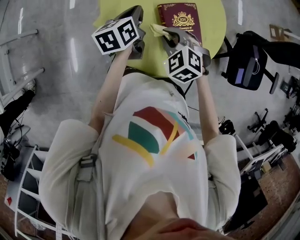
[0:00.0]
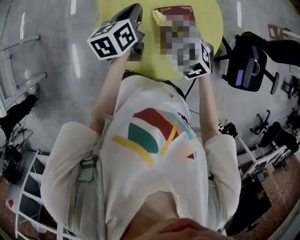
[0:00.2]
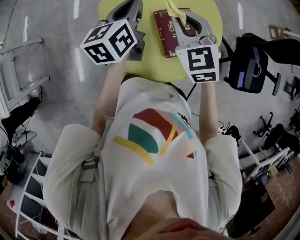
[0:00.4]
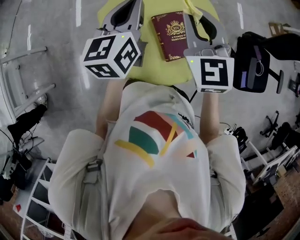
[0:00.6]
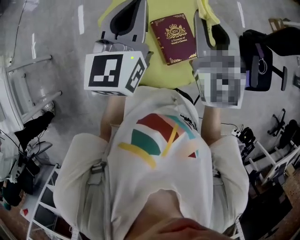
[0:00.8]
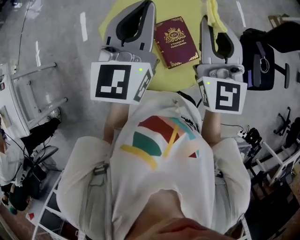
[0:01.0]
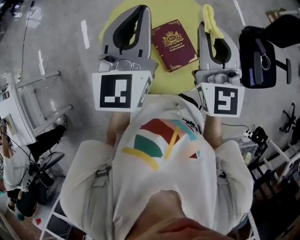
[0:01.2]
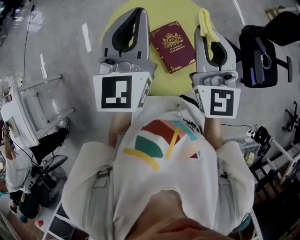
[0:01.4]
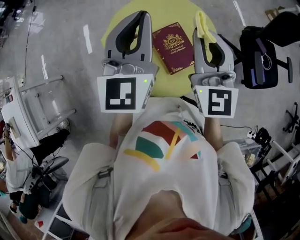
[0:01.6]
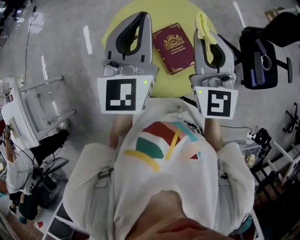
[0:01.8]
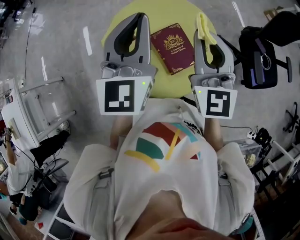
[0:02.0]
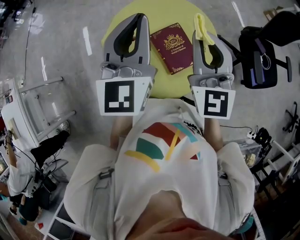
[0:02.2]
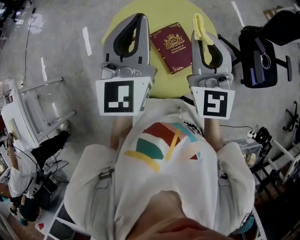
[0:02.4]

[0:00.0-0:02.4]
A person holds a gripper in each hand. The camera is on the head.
0:00.0 to 0:01.2: The right gripper heads upward and to the right, covering about 30 cm, and points its fingers approximately 60 degrees further upward, while the left gripper moves upward, roughly 30 cm, and twists roughly 40 degrees clockwise, seen from behind.
0:01.2 to 0:02.4: The grippers move only a little.

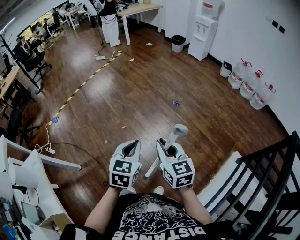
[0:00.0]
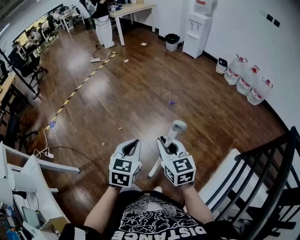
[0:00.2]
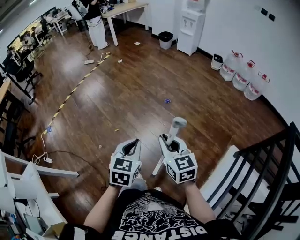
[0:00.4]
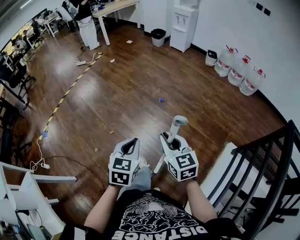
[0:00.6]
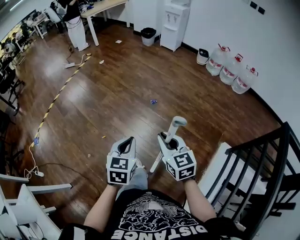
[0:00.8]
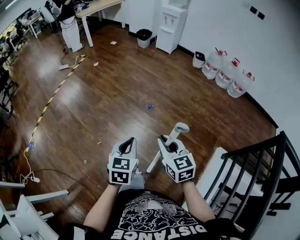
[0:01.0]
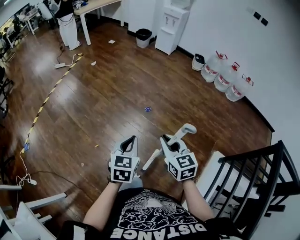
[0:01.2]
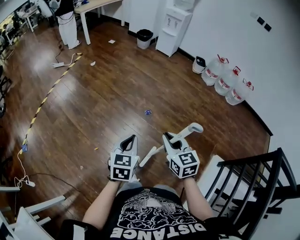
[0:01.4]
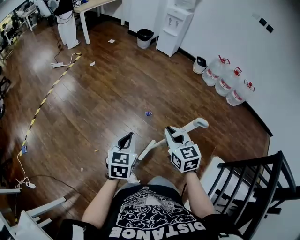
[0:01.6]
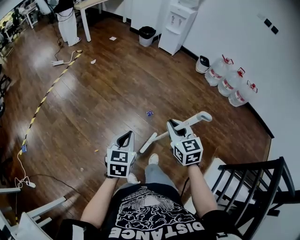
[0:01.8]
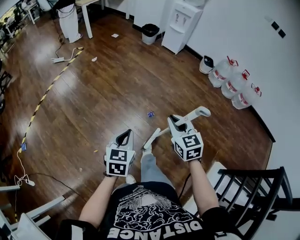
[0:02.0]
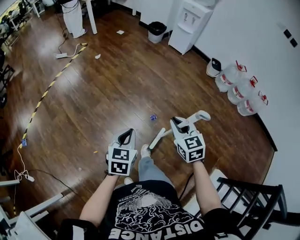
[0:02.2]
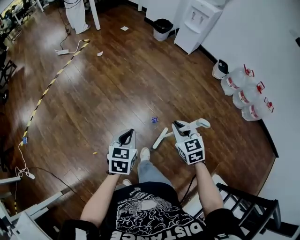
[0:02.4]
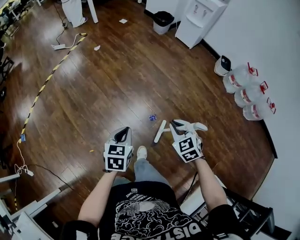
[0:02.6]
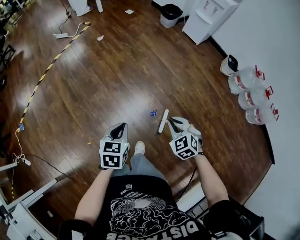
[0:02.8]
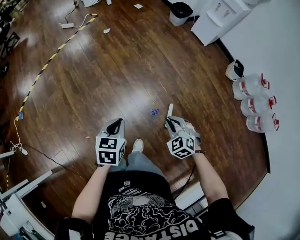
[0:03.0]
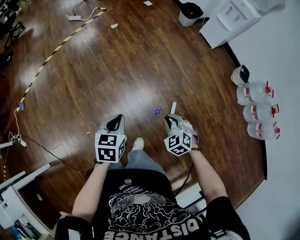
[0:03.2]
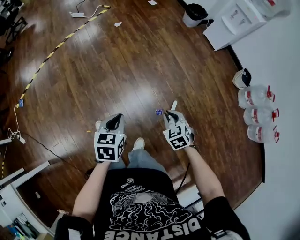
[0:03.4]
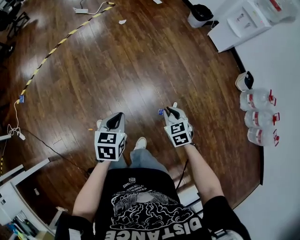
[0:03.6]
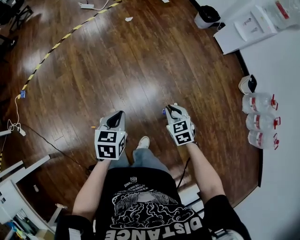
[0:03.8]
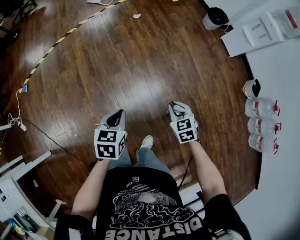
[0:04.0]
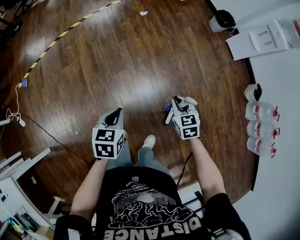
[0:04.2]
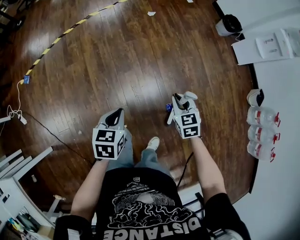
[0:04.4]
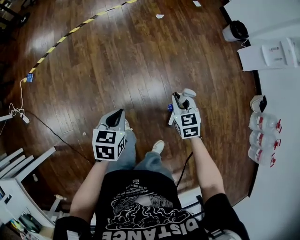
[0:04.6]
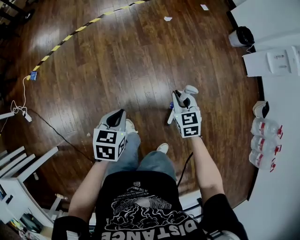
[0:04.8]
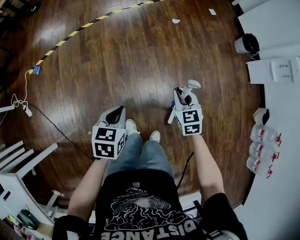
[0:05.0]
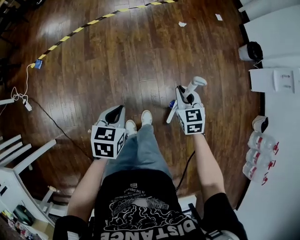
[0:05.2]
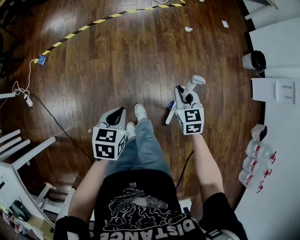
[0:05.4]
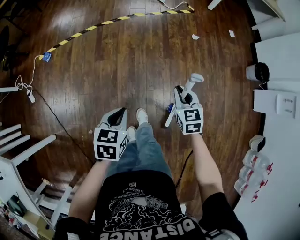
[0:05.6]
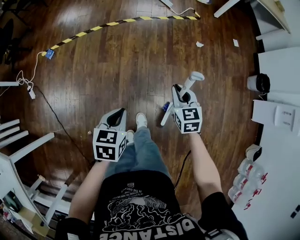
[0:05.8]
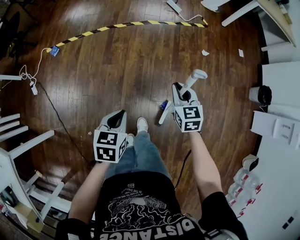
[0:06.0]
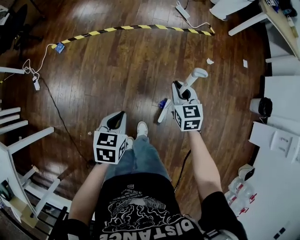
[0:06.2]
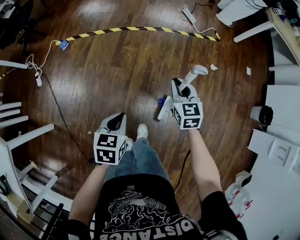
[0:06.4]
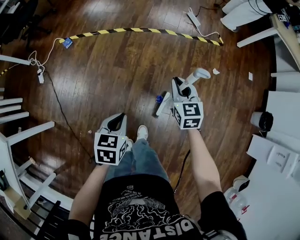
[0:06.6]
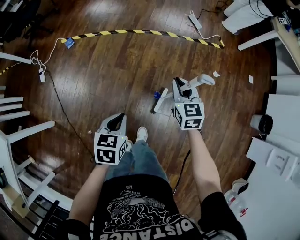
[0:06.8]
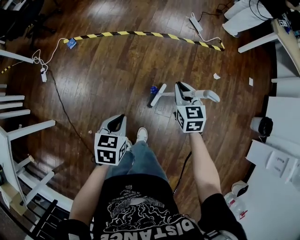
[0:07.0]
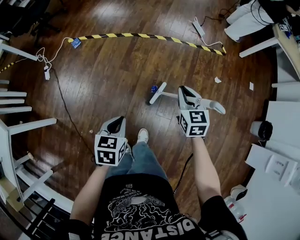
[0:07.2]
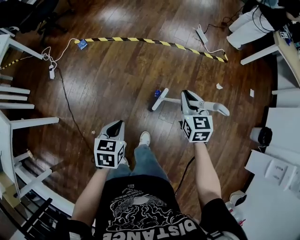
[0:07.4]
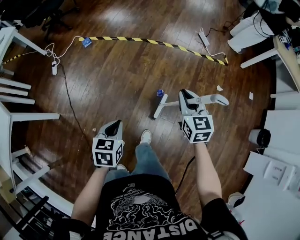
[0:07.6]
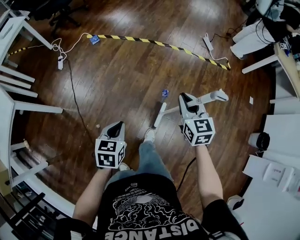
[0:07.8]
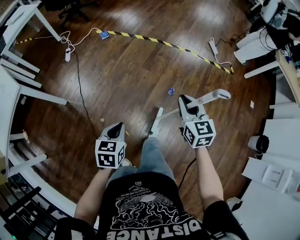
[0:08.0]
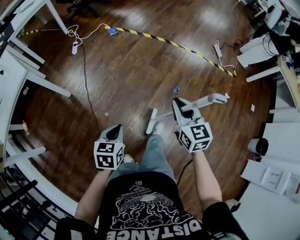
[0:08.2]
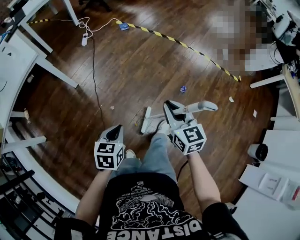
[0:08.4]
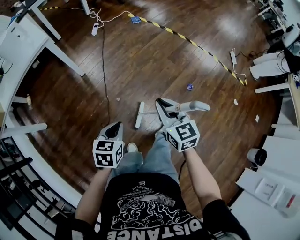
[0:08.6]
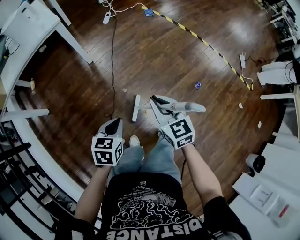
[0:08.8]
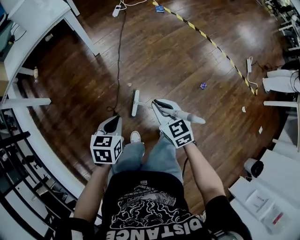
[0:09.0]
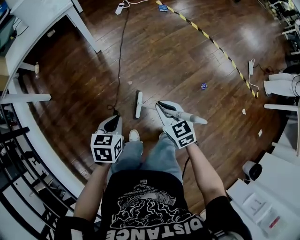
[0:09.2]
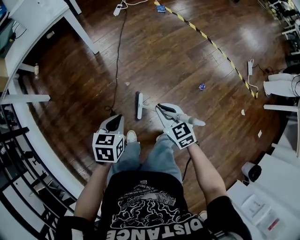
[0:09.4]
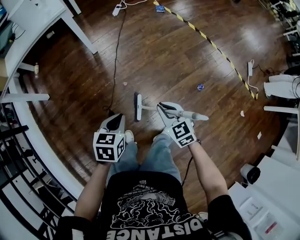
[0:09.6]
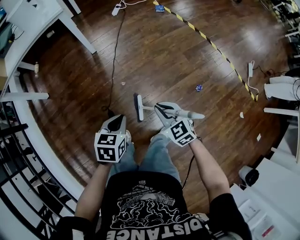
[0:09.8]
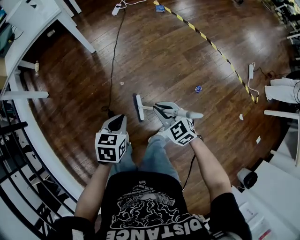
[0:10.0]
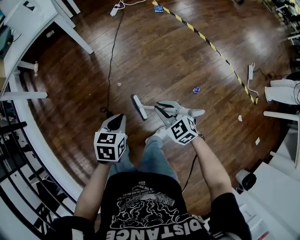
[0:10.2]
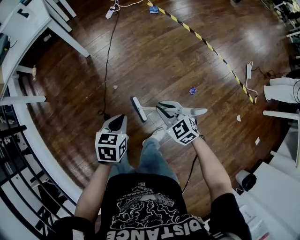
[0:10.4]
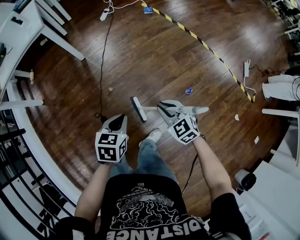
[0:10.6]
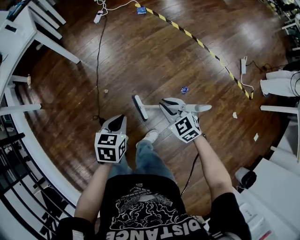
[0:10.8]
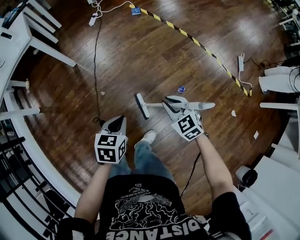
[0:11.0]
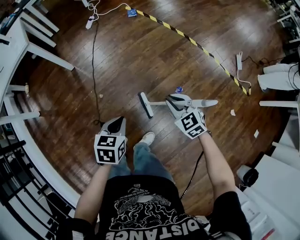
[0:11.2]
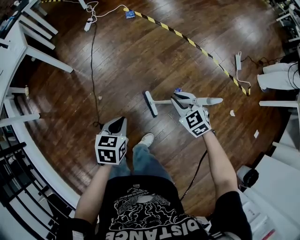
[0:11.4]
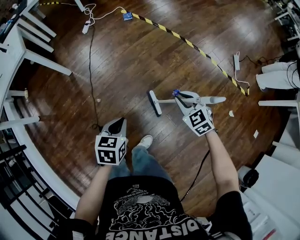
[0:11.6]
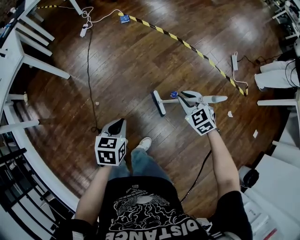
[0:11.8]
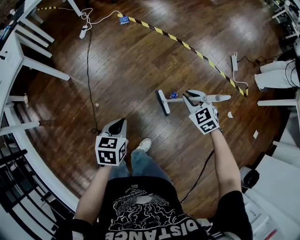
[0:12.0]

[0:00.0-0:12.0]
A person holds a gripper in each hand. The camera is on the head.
0:00.0 to 0:01.6: The two grippers go about 35 cm forward.
0:01.6 to 0:03.0: Both grippers move forward and downward, approximately 40 cm. The right gripper twists some 40 degrees counterclockwise, seen from behind. Meanwhile the left gripper changes its angle by roughly 30 degrees.
0:03.0 to 0:04.4: The left gripper is displaced to the left by some 25 cm. The right gripper travels to the left and forward by approximately 35 cm, and turns by approximately 20 degrees.
0:04.4 to 0:06.0: The left gripper goes approximately 30 cm to the left and forward, and changes its angle by roughly 20 degrees. The right gripper travels forward and to the left by roughly 40 cm, and changes its angle by about 20 degrees.
0:06.0 to 0:07.6: The left gripper moves to the left and backward, some 15 cm, and changes its angle by some 20 degrees, while the right gripper heads to the left and upward, covering some 15 cm.
0:07.6 to 0:09.0: Both grippers are carried some 50 cm. The left gripper changes its angle by roughly 30 degrees; the right gripper turns by some 50 degrees.
0:09.0 to 0:10.4: The grippers both shift to the right by about 20 cm. The right gripper turns by roughly 20 degrees.
0:10.4 to 0:12.0: The right gripper goes approximately 35 cm to the right, and rotates some 20 degrees; the left gripper shifts some 20 cm to the right.

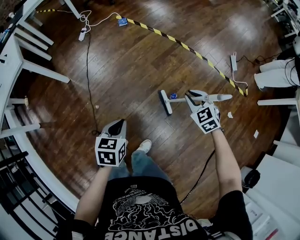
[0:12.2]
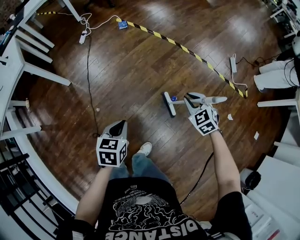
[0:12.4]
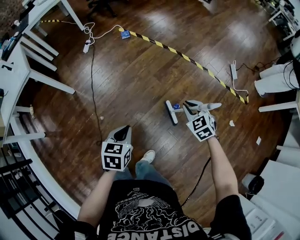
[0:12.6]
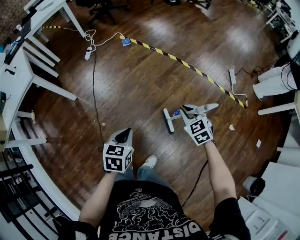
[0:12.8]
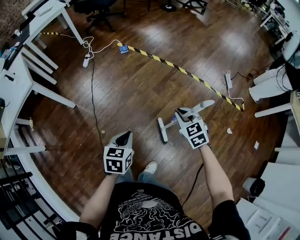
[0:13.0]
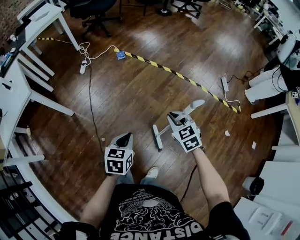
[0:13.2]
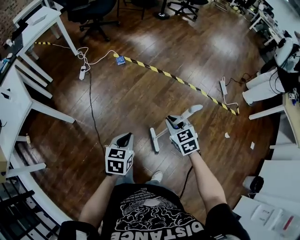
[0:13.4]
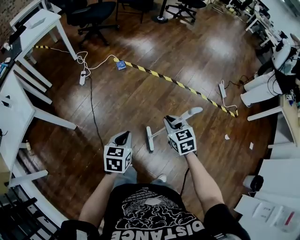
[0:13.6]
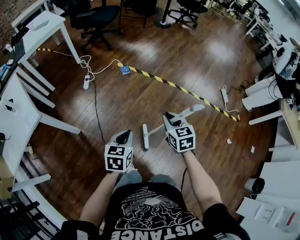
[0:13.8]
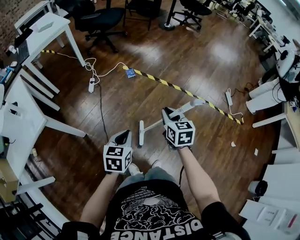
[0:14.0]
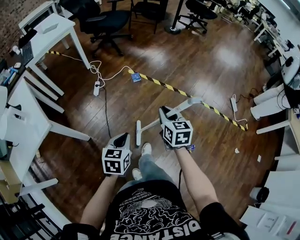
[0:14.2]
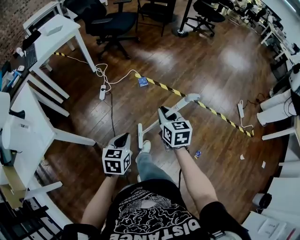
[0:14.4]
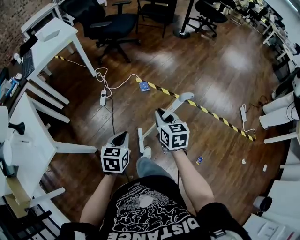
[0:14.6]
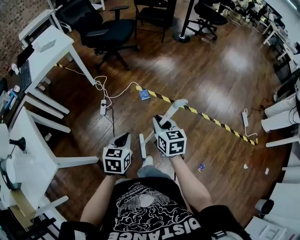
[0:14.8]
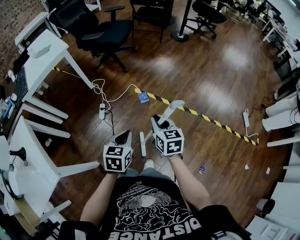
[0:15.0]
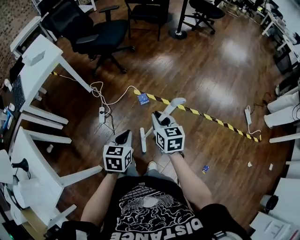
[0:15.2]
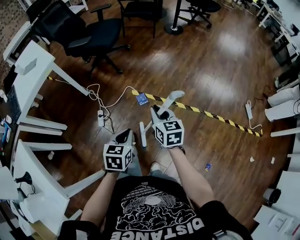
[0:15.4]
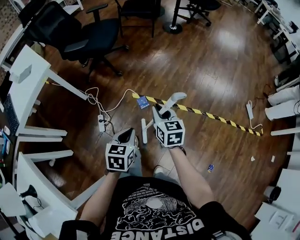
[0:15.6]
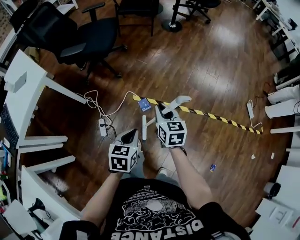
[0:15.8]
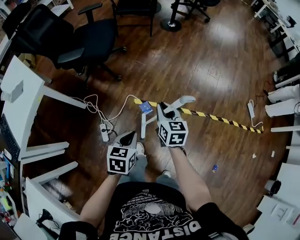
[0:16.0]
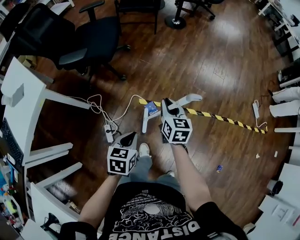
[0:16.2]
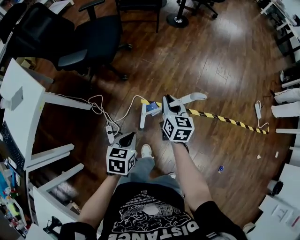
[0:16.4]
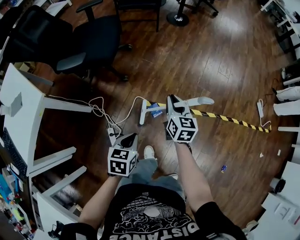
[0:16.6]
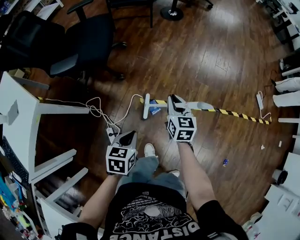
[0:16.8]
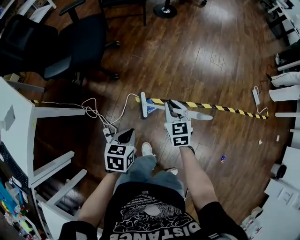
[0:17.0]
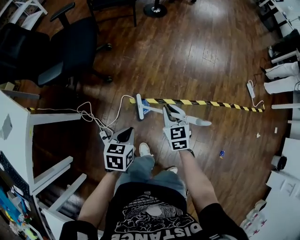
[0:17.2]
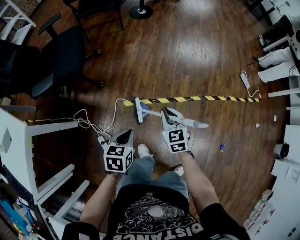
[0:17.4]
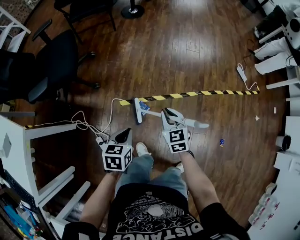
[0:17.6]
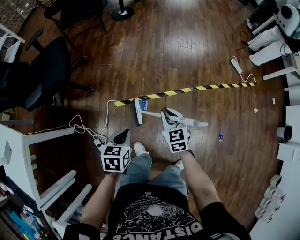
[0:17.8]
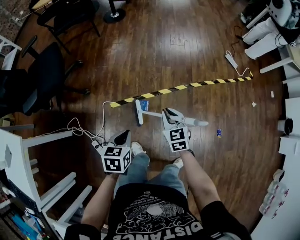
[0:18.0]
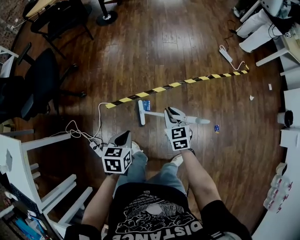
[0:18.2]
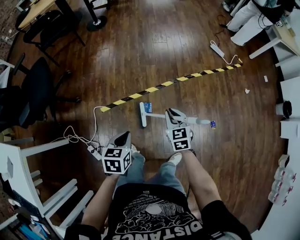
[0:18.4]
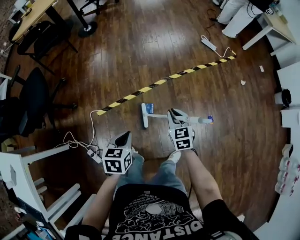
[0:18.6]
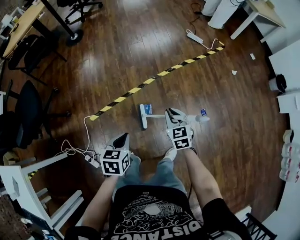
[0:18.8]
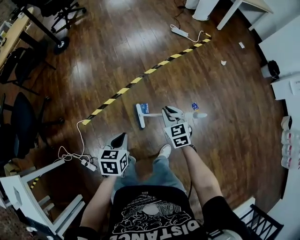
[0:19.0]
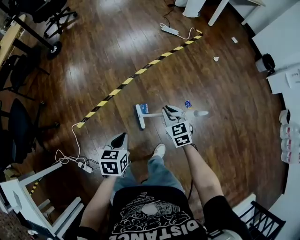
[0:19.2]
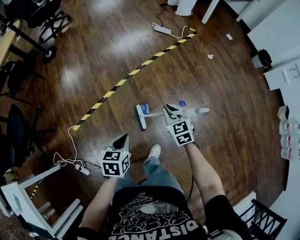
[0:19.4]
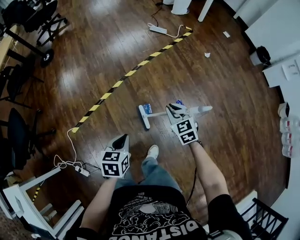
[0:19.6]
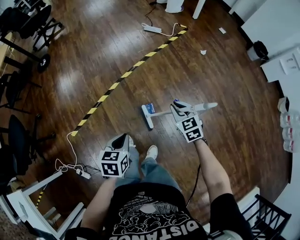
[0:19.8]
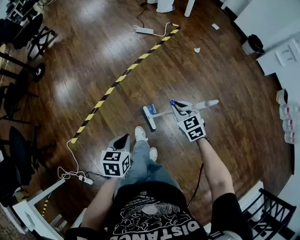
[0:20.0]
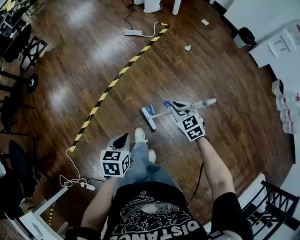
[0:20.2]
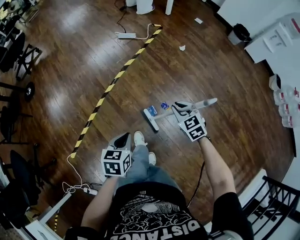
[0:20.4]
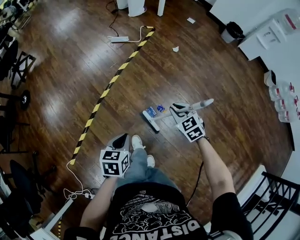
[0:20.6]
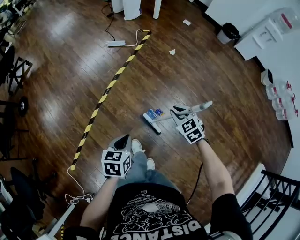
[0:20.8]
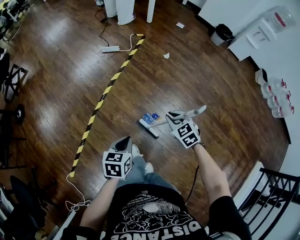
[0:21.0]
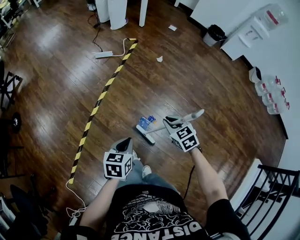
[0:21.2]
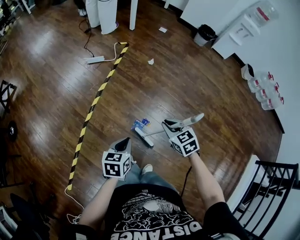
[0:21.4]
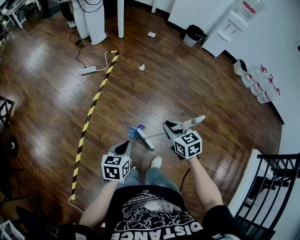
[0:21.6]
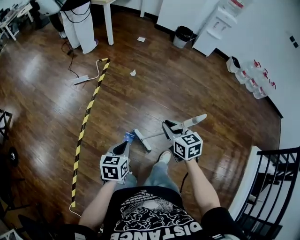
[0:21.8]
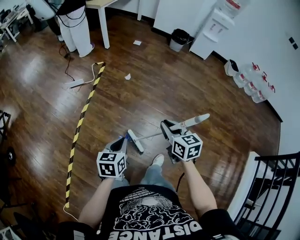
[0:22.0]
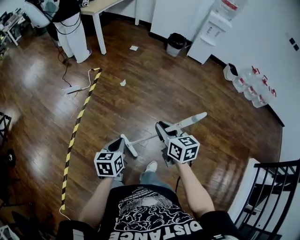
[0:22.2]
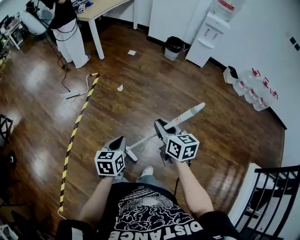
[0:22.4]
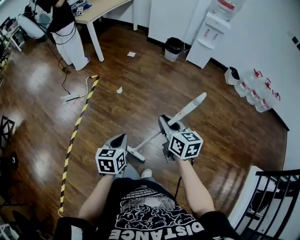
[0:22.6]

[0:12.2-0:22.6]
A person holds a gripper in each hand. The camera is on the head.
0:12.2 to 0:13.6: The right gripper goes approximately 25 cm to the left and forward, and turns by roughly 30 degrees. The left gripper moves forward and to the left, approximately 25 cm.
0:13.6 to 0:15.2: The pair of grippers is taken forward and to the left, roughly 50 cm. The right gripper changes its angle by roughly 20 degrees.
0:15.2 to 0:16.6: The left gripper is displaced forward and to the left by approximately 35 cm. The right gripper goes roughly 35 cm forward, and swivels approximately 20 degrees.
0:16.6 to 0:18.2: The right gripper heads to the right and backward, covering roughly 35 cm, and changes its angle by some 20 degrees. The left gripper goes some 25 cm to the right, and turns by roughly 20 degrees.
0:18.2 to 0:19.6: Both grippers are carried to the right, approximately 40 cm. The left gripper changes its angle by some 30 degrees.
0:19.6 to 0:21.2: The right gripper is displaced to the right and forward by about 20 cm, and swivels about 20 degrees, while the left gripper moves forward and to the right, approximately 25 cm, and rotates some 30 degrees.
0:21.2 to 0:22.6: The pair of grippers is taken to the right and forward, about 40 cm. The right gripper travels upward by approximately 15 cm, and changes its angle by some 50 degrees.
